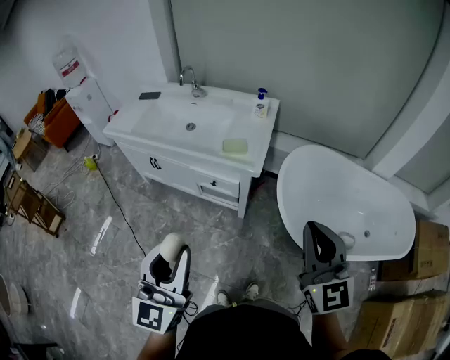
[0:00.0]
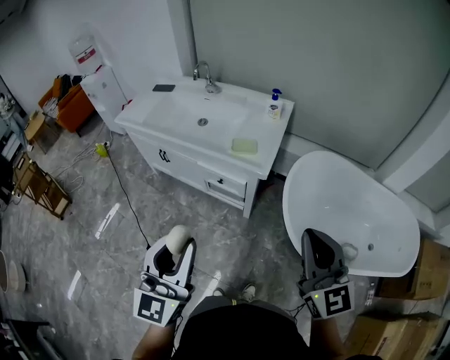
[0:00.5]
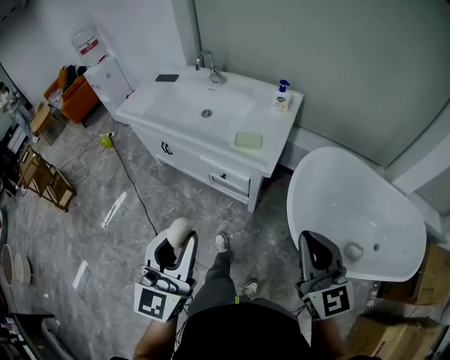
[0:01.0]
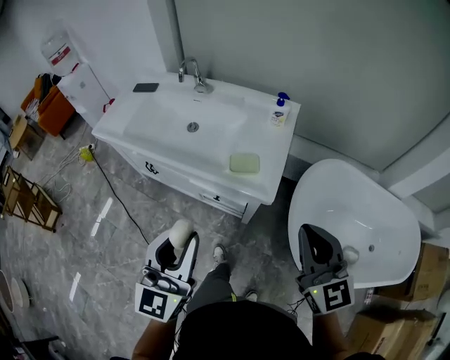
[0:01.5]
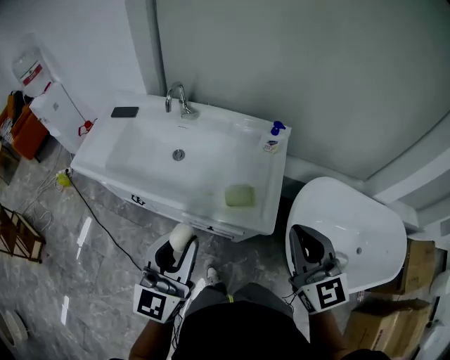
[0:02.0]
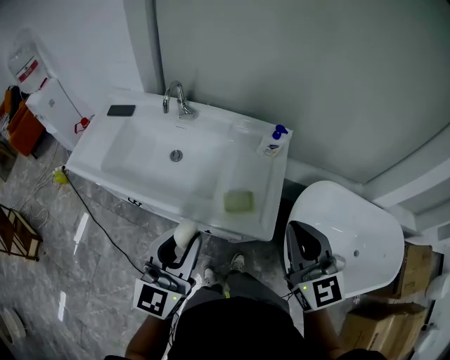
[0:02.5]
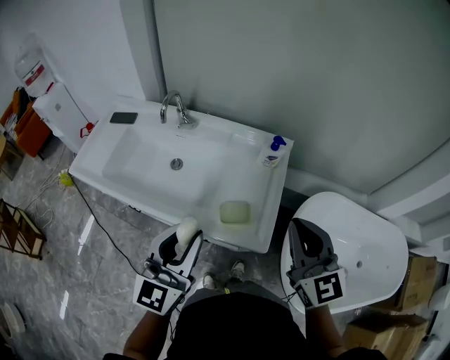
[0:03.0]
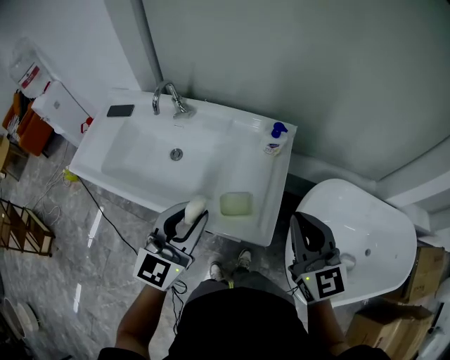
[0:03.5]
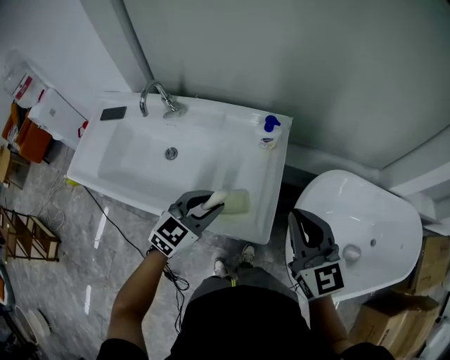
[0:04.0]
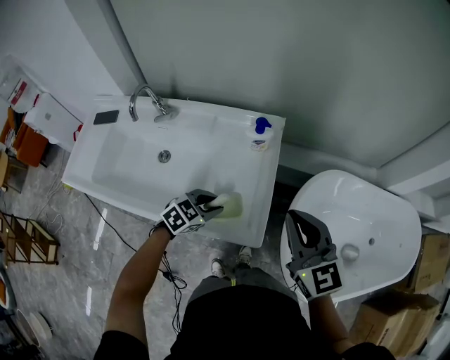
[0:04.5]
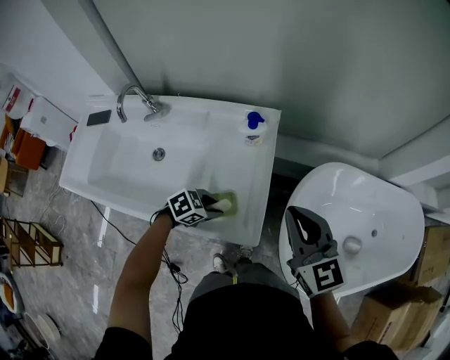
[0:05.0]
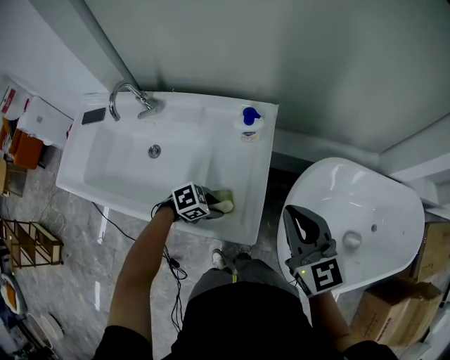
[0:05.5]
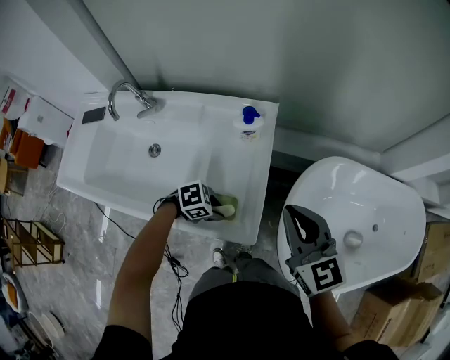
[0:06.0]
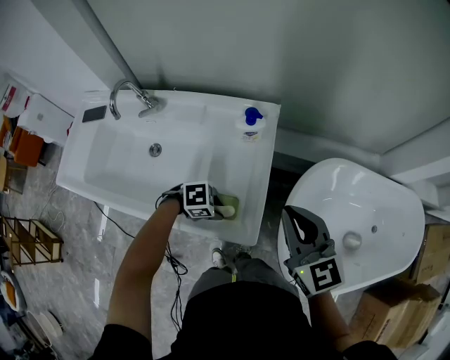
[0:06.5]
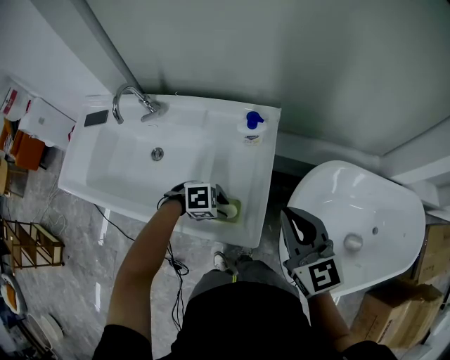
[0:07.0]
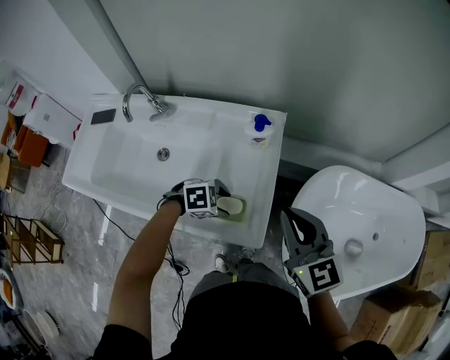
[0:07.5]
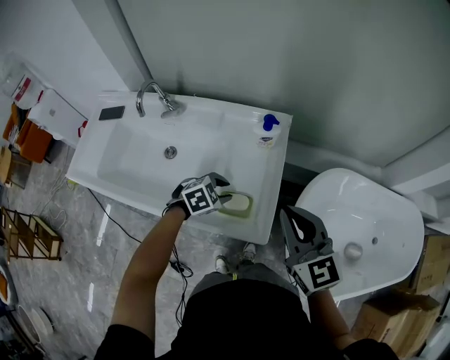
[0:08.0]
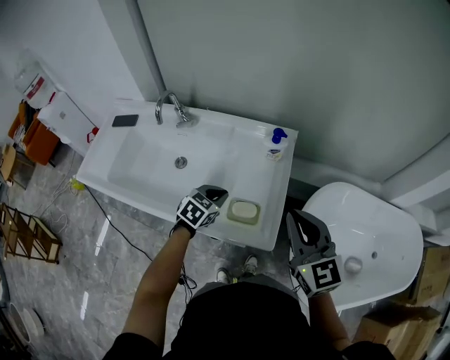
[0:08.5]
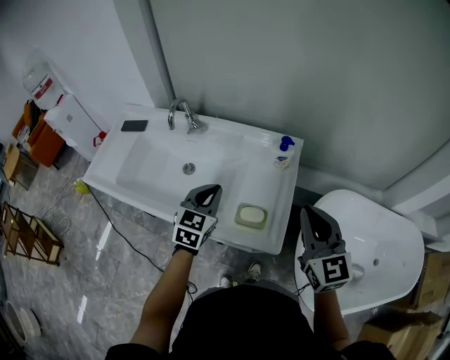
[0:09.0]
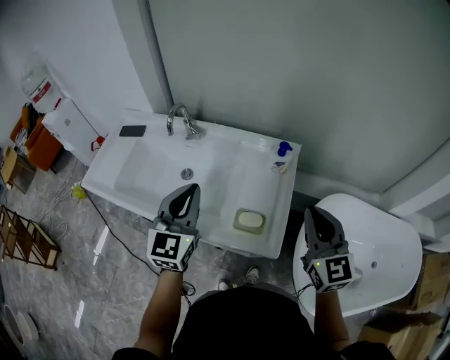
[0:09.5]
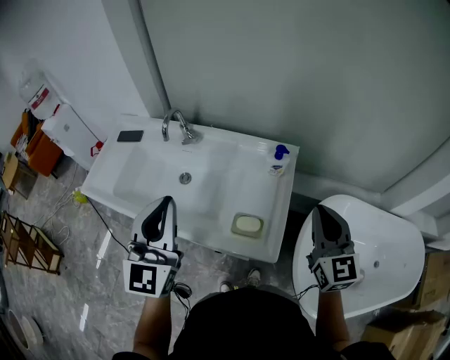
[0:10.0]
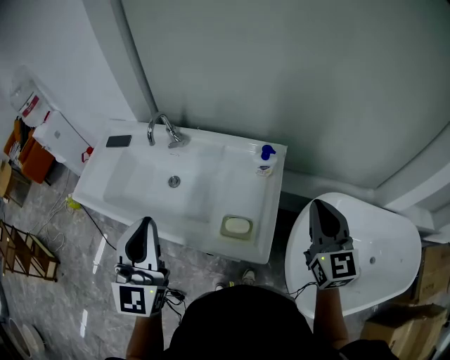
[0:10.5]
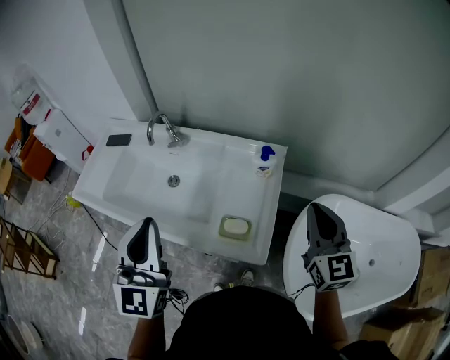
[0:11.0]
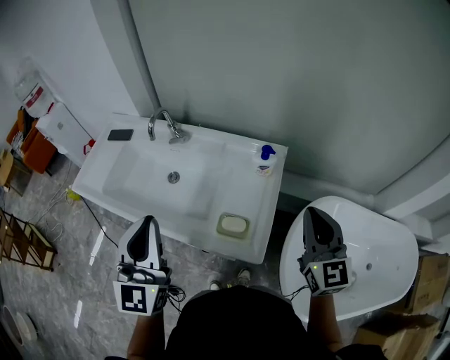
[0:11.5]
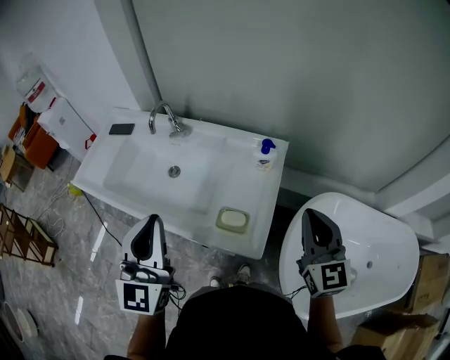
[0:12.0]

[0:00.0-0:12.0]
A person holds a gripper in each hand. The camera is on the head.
0.0 to 2.0 s: Both grippers travel together forward, about 35 cm.
2.0 to 4.0 s: The right gripper is displaced forward, to the right and downward by approximately 15 cm. The left gripper goes roughly 30 cm forward, downward and to the right, and rotates roughly 40 degrees.
4.0 to 6.0 s: The right gripper ends up some 5 cm from where it was, while the left gripper is displaced downward by roughly 20 cm, and changes its angle by roughly 60 degrees.
6.0 to 8.0 s: The left gripper shifts by some 10 cm, changes its angle by roughly 30 degrees, and opens and closes again. Meanwhile the right gripper shifts by some 5 cm.
8.0 to 10.0 s: The left gripper is displaced upward and to the left by about 40 cm, tips its fingers upward by some 60 degrees, and closes up. Meanwhile the right gripper shifts about 5 cm upward.
10.0 to 12.0 s: The left gripper shifts by some 5 cm.

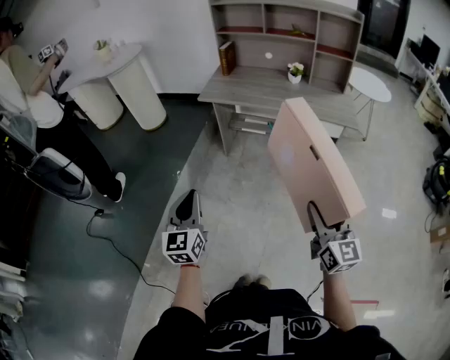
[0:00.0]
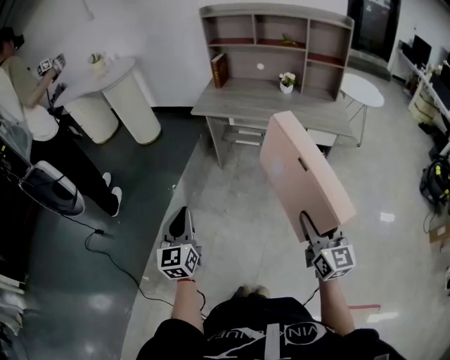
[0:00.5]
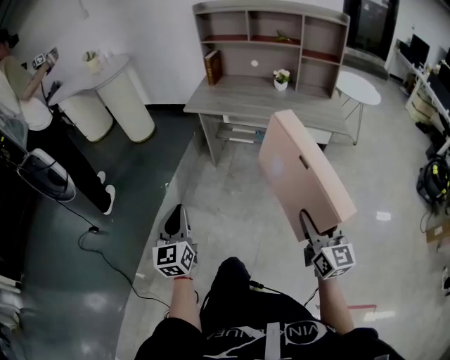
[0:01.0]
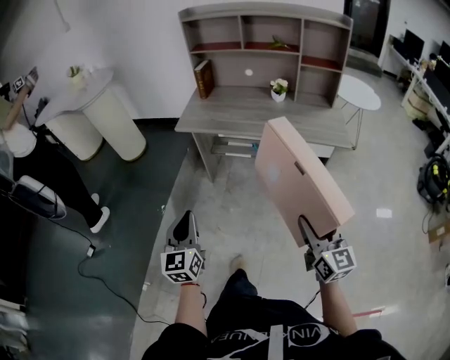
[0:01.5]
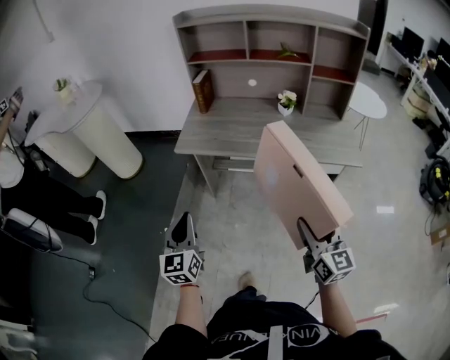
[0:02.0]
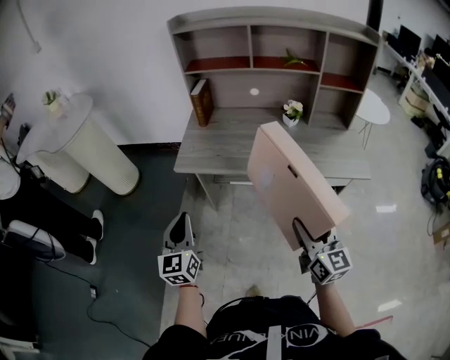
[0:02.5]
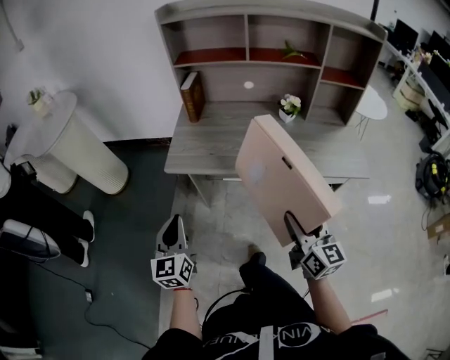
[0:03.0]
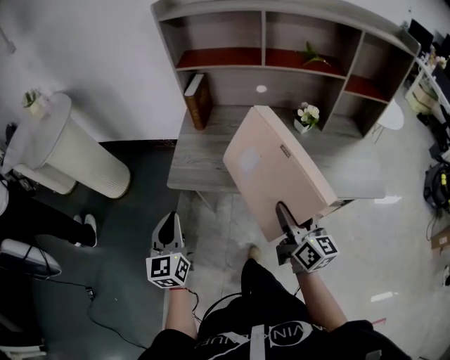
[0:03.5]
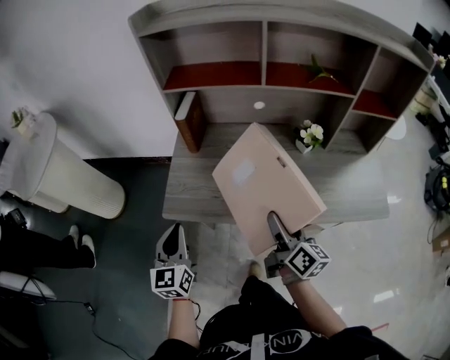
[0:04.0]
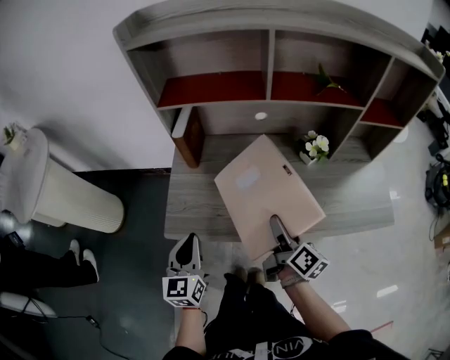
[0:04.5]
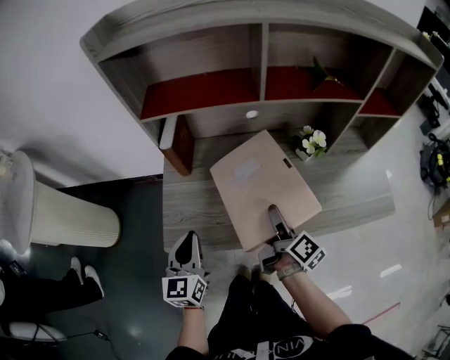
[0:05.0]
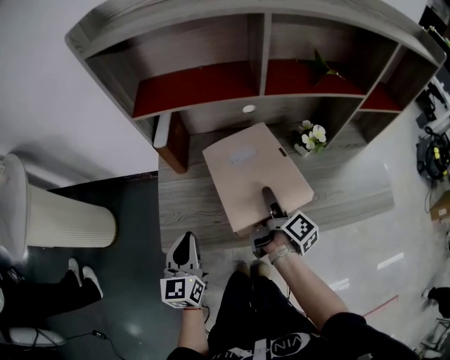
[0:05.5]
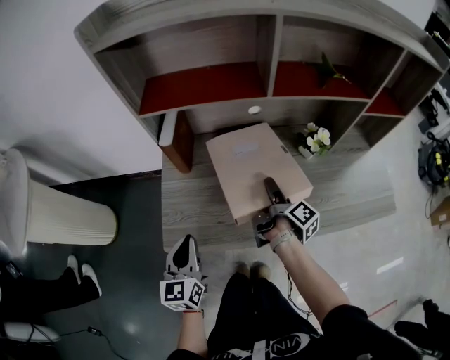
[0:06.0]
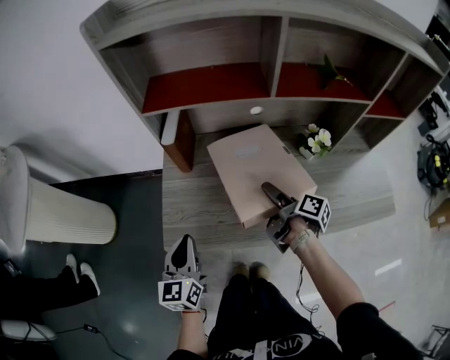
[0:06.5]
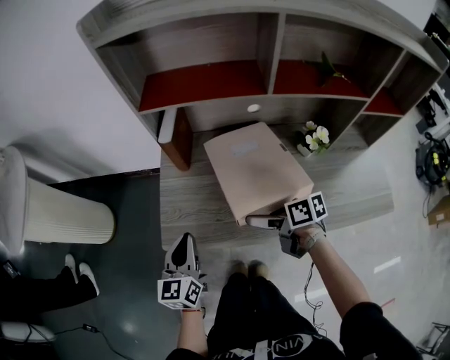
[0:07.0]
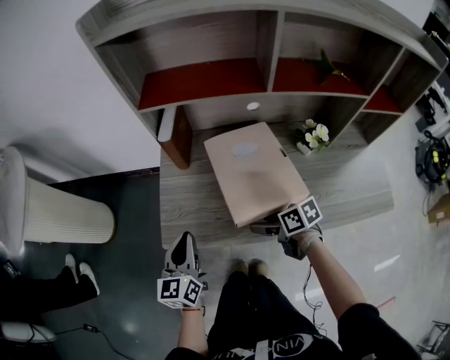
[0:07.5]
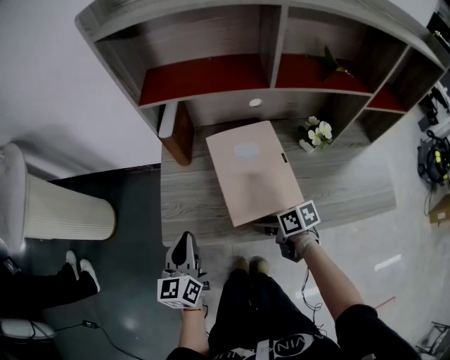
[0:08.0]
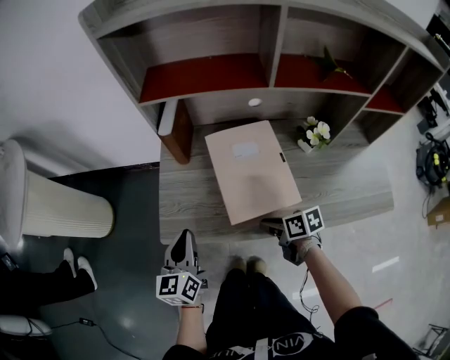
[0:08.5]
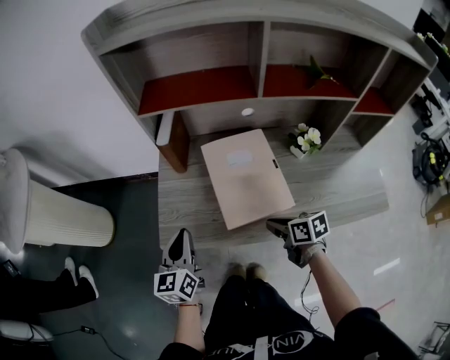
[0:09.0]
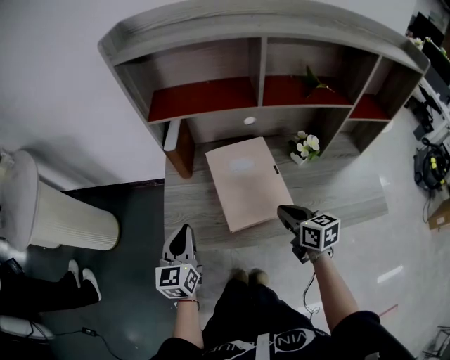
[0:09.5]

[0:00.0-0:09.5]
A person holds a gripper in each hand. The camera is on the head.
0.0 to 2.0 s: The two grippers go some 30 cm forward.
2.0 to 4.0 s: Both grippers travel together forward, approximately 35 cm. The right gripper turns by about 40 degrees.
4.0 to 5.5 s: The left gripper travels forward by approximately 10 cm. The right gripper shifts about 15 cm forward and downward, and rotates about 40 degrees.
5.5 to 7.5 s: The right gripper ends up approximately 10 cm from where it was, changes its angle by roughly 80 degrees, and opens and closes again.
7.5 to 9.5 s: The right gripper shifts some 10 cm to the right and upward, rotates roughly 30 degrees, and closes its fingers.

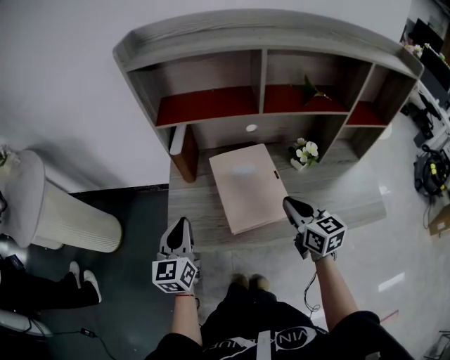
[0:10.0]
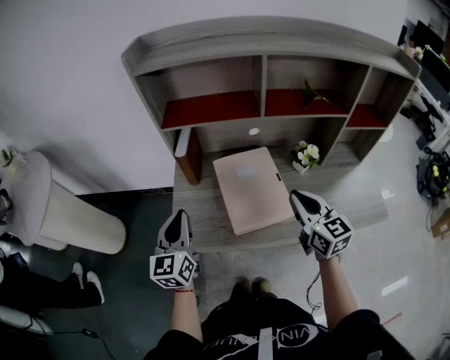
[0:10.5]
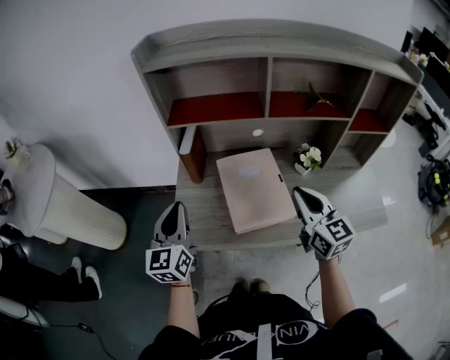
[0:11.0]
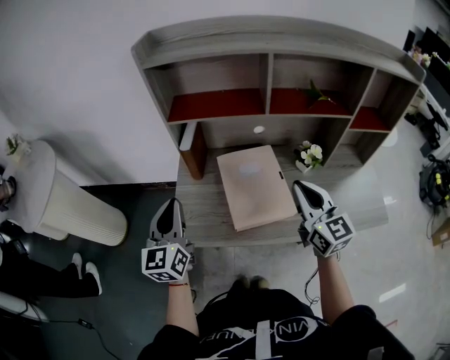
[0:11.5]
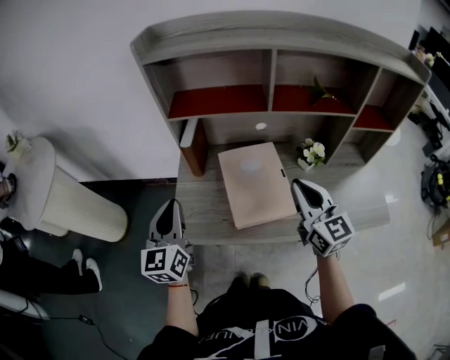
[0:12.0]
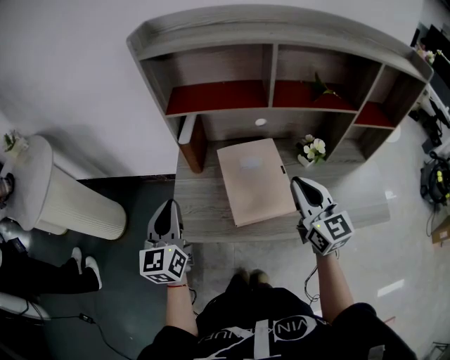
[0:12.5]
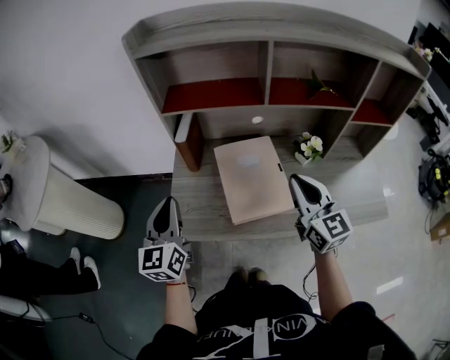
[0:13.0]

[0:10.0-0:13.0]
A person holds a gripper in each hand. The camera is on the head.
10.0 to 11.5 s: The grippers both shift upward by some 10 cm. The right gripper turns by some 20 degrees.
11.5 to 13.0 s: There are only small adjustments of the grippers.

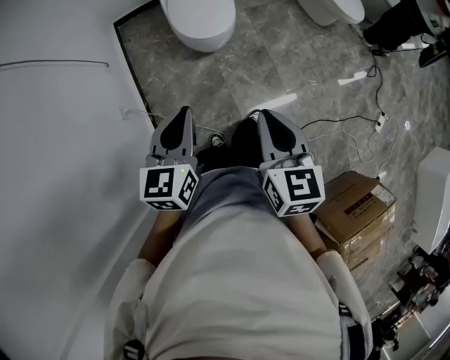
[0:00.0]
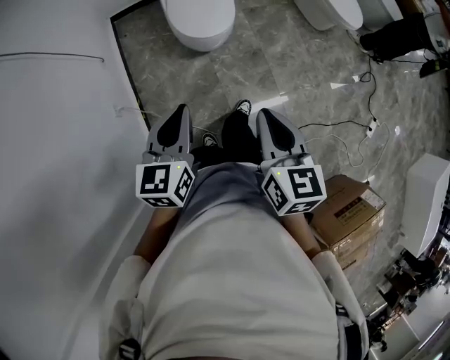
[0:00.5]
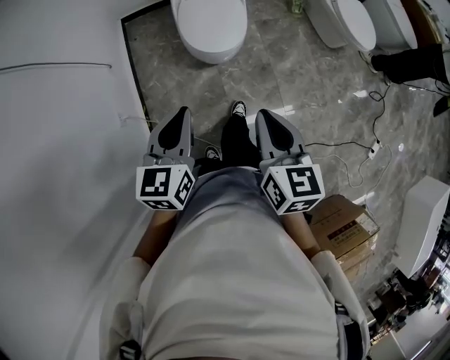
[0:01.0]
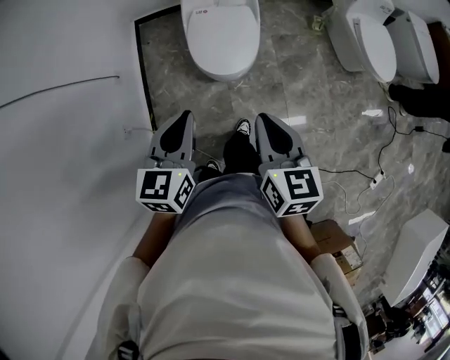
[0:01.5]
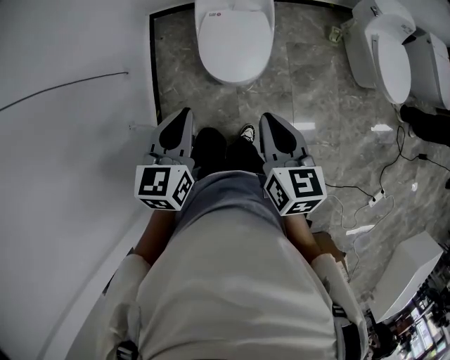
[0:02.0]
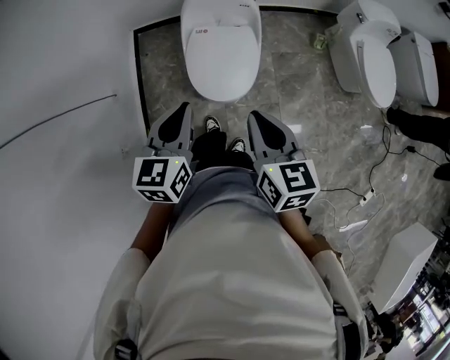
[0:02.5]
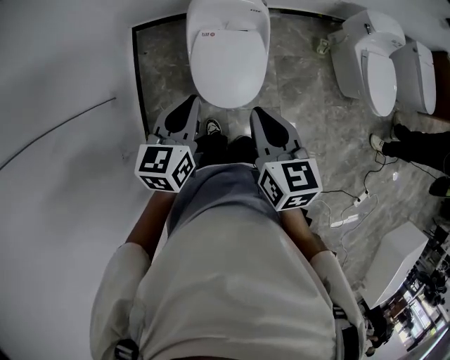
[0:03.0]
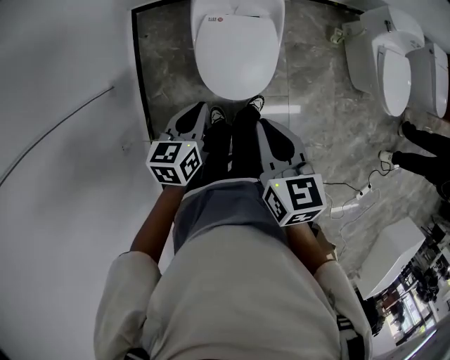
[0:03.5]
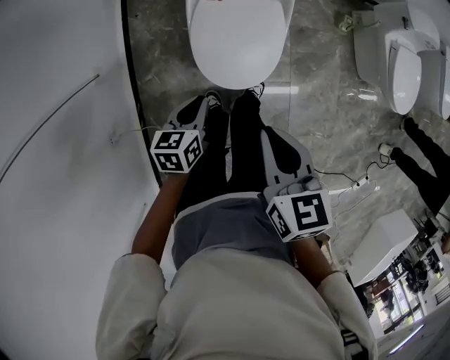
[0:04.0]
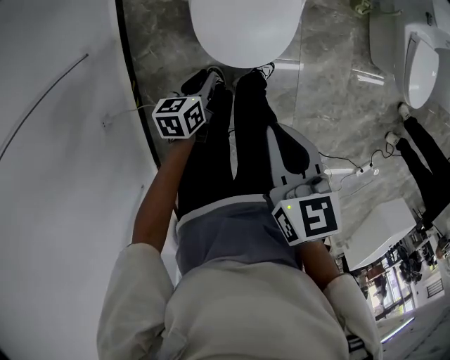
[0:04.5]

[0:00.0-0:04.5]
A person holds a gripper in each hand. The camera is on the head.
0.0 to 2.0 s: The two grippers go approximately 30 cm forward.
2.0 to 4.5 s: The right gripper shifts roughly 25 cm downward, forward and to the left, and changes its angle by some 20 degrees, while the left gripper travels downward and forward by some 40 cm, and turns by some 40 degrees.
